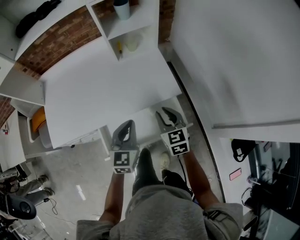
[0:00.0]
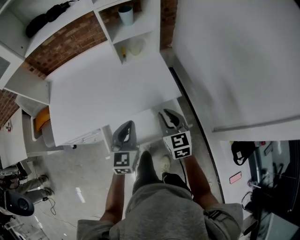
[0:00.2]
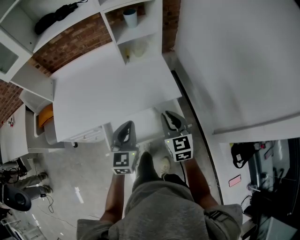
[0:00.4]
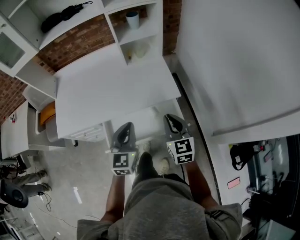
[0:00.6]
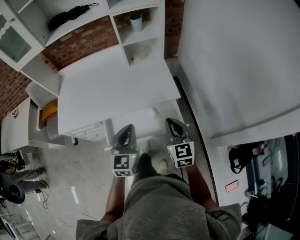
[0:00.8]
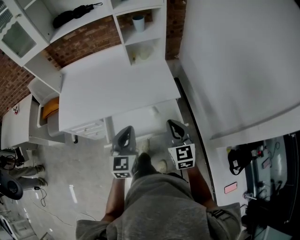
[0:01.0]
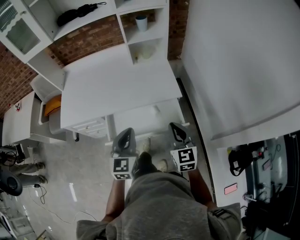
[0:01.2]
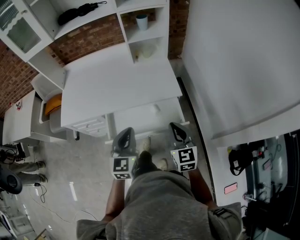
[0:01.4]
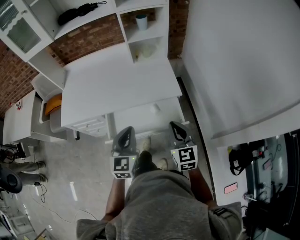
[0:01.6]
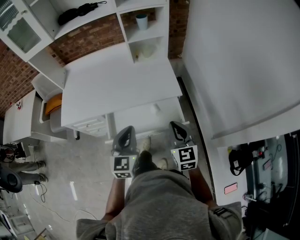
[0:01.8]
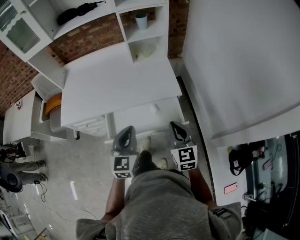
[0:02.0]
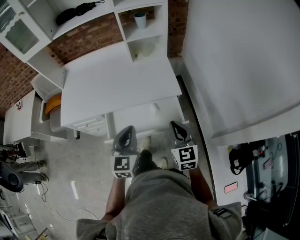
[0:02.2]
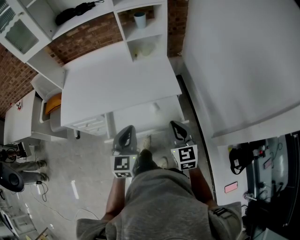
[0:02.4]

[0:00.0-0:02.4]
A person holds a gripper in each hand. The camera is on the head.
0:00.0 to 0:01.2: Both grippers move backward and upward, roughly 20 cm. The right gripper closes its fingers.
0:01.2 to 0:02.4: The grippers make only small movements.

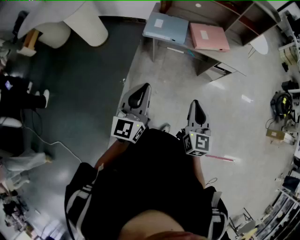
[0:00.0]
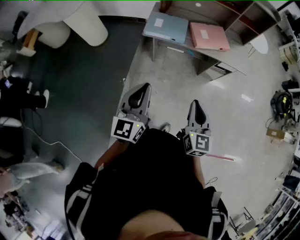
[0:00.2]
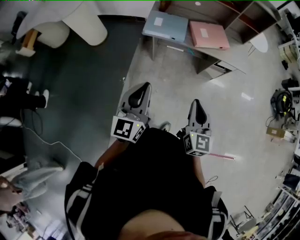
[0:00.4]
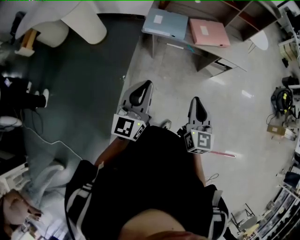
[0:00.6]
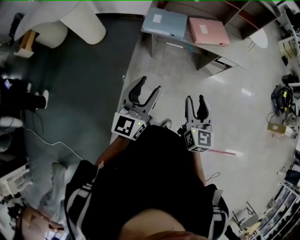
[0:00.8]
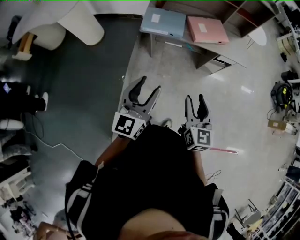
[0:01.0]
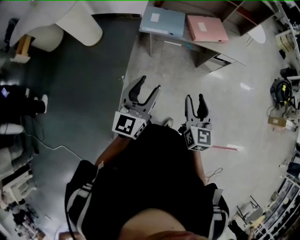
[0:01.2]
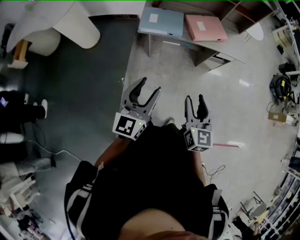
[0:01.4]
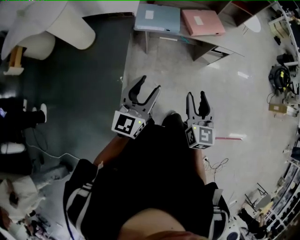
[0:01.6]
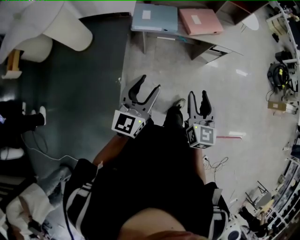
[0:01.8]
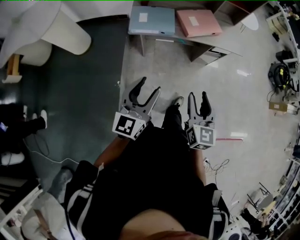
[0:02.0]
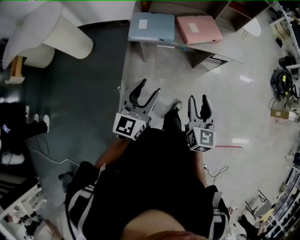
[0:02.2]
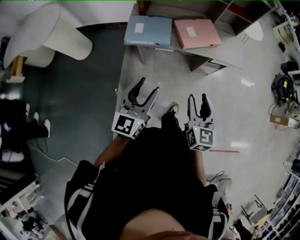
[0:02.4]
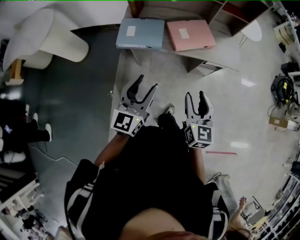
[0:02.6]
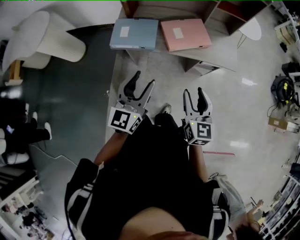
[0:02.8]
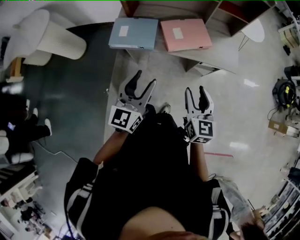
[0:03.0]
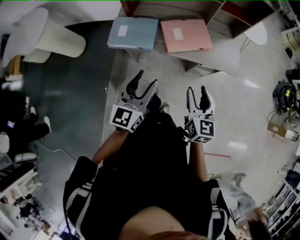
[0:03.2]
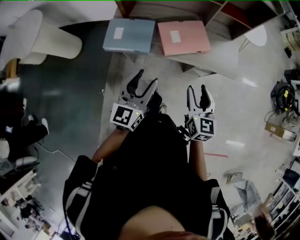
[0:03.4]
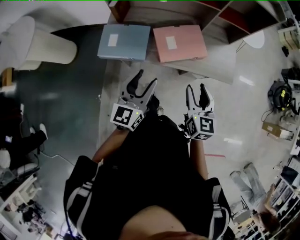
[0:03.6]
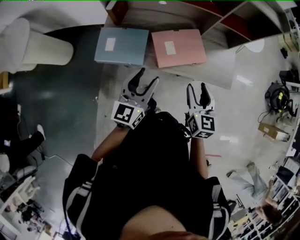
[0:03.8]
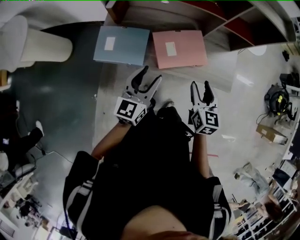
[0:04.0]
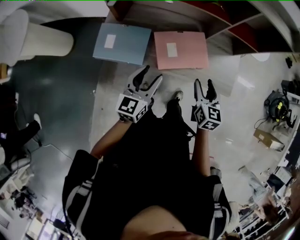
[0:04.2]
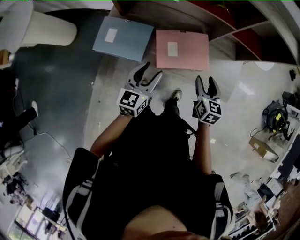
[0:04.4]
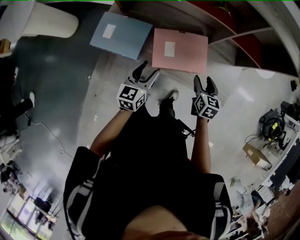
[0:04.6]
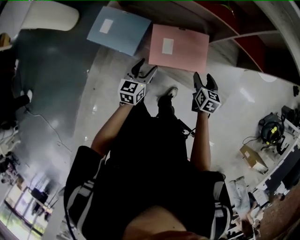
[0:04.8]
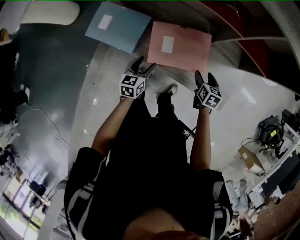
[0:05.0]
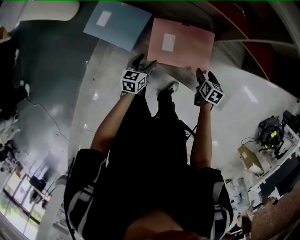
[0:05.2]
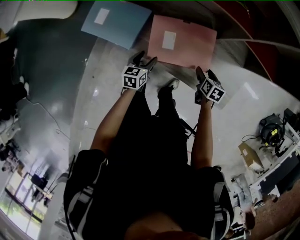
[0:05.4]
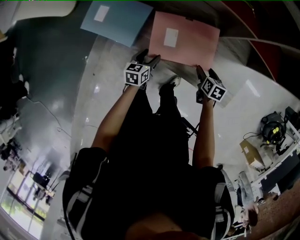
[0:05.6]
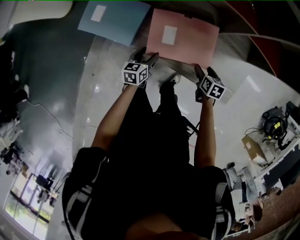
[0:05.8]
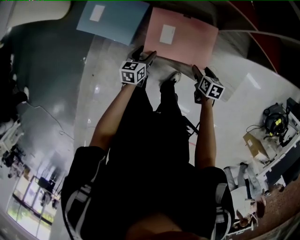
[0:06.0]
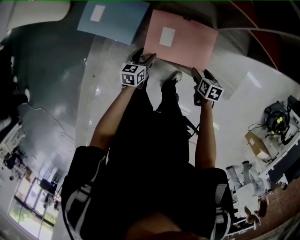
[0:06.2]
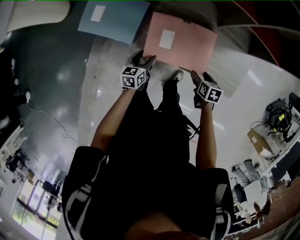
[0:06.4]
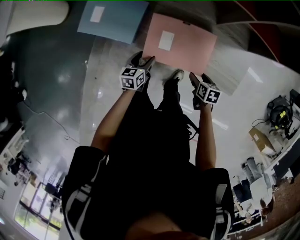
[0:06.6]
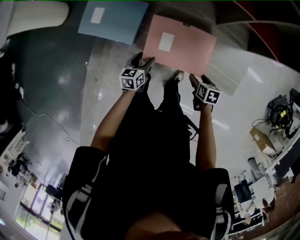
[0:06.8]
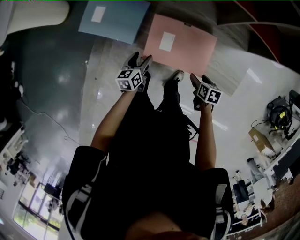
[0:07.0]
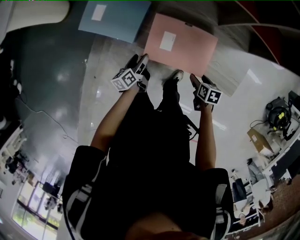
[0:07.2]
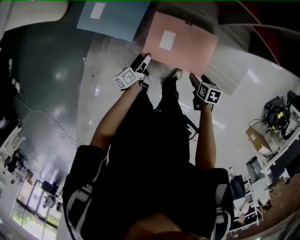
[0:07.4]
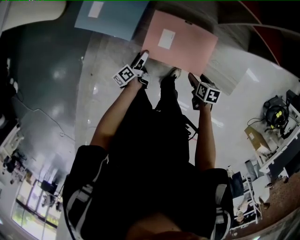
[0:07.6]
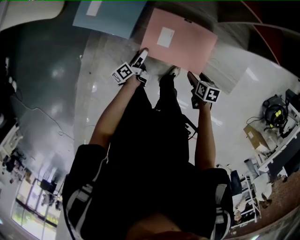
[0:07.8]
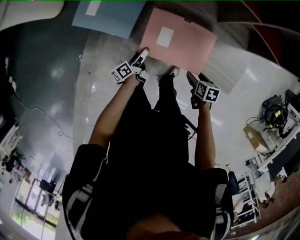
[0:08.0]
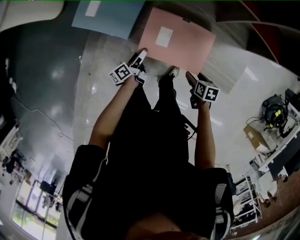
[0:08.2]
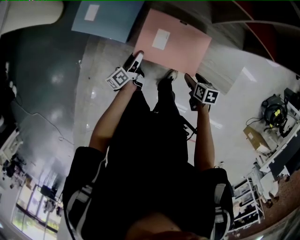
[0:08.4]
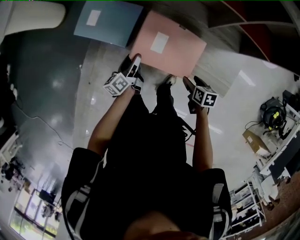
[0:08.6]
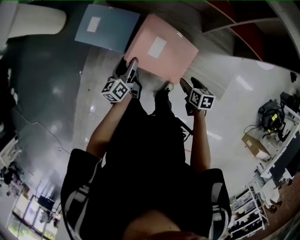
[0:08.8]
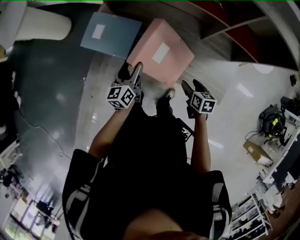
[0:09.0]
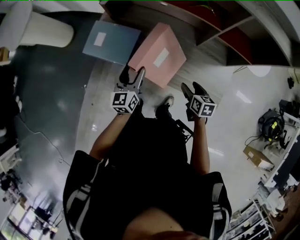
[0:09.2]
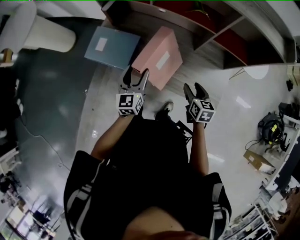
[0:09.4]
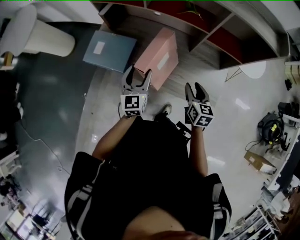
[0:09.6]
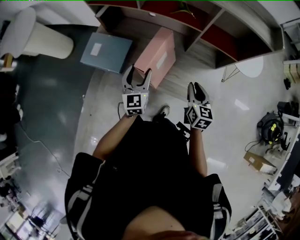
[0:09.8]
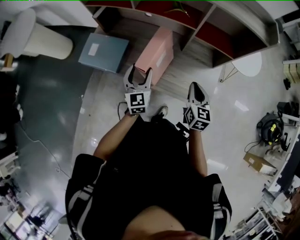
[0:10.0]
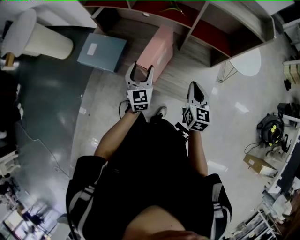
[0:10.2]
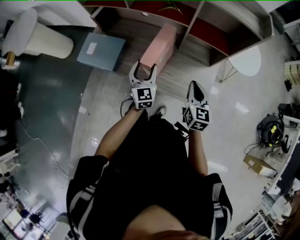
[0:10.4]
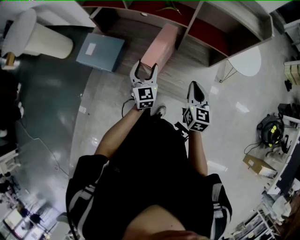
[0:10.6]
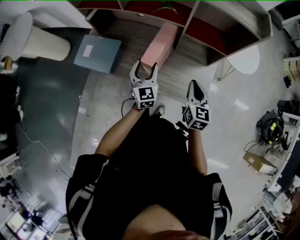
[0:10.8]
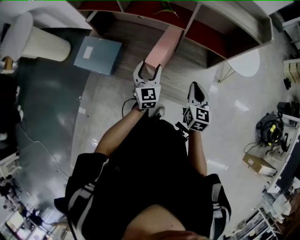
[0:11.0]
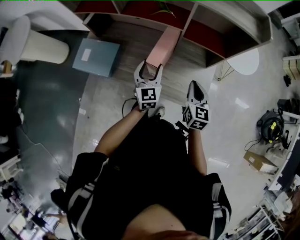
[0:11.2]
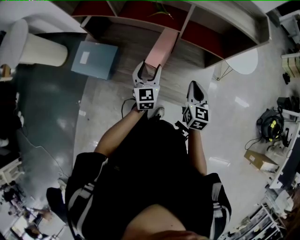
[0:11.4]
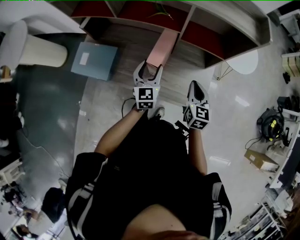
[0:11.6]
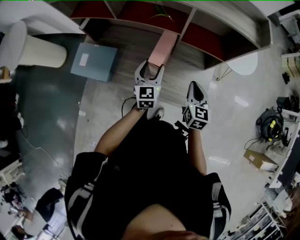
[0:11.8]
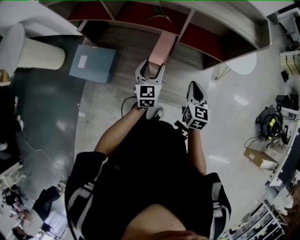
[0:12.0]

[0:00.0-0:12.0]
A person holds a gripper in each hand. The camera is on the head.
0:00.0 to 0:01.6: The right gripper heads to the left, covering about 5 cm, and opens up. The left gripper changes place by about 5 cm, and opens up.
0:01.6 to 0:03.0: The two grippers go approximately 30 cm forward and to the right.
0:03.0 to 0:04.4: The right gripper heads forward, covering about 30 cm, while the left gripper goes some 30 cm forward and downward.
0:04.4 to 0:06.0: Both grippers move downward, approximately 25 cm. The right gripper swivels roughly 30 degrees. Meanwhile the left gripper changes its angle by some 30 degrees.
0:06.0 to 0:07.6: The right gripper shifts approximately 10 cm backward. Meanwhile the left gripper changes place by some 10 cm, and rolls counterclockwise, seen from behind, by some 50 degrees.
0:07.6 to 0:09.0: The right gripper is displaced upward by some 10 cm. The left gripper heads upward, covering roughly 20 cm, and rotates around the line of its fingers by approximately 50 degrees, clockwise from behind.
0:09.0 to 0:10.4: The left gripper goes some 20 cm to the right, and swivels roughly 40 degrees. The right gripper shifts roughly 20 cm upward and to the right, changes its angle by some 40 degrees, and closes its fingers.
0:10.4 to 0:12.0: The left gripper travels forward and to the right by approximately 10 cm; the right gripper shifts about 5 cm forward.

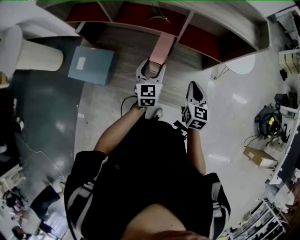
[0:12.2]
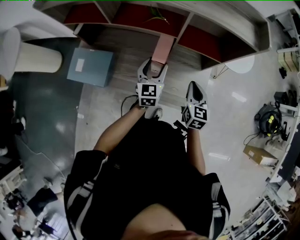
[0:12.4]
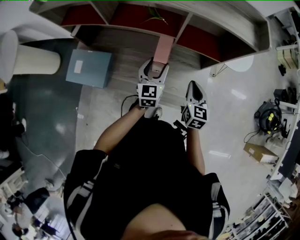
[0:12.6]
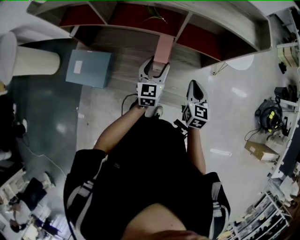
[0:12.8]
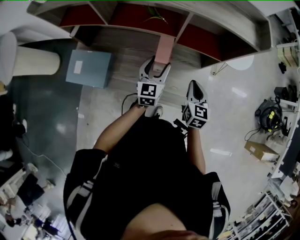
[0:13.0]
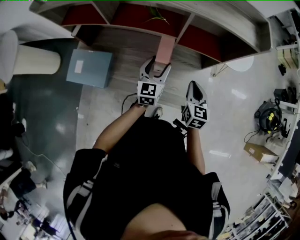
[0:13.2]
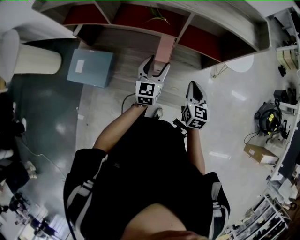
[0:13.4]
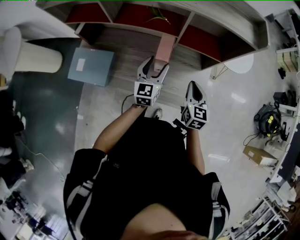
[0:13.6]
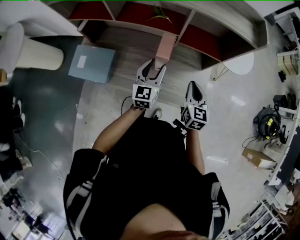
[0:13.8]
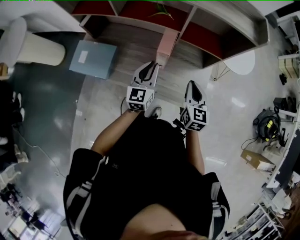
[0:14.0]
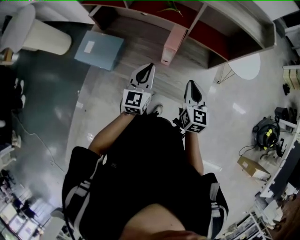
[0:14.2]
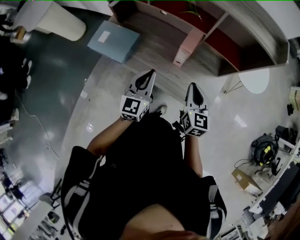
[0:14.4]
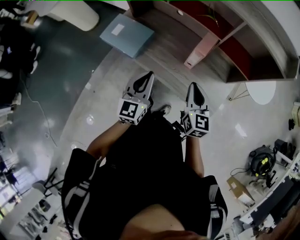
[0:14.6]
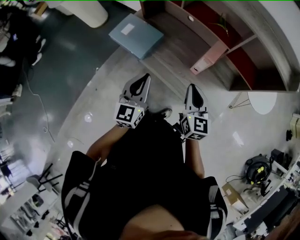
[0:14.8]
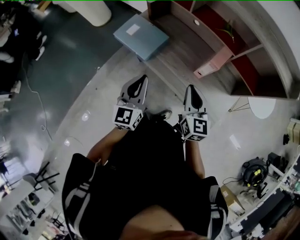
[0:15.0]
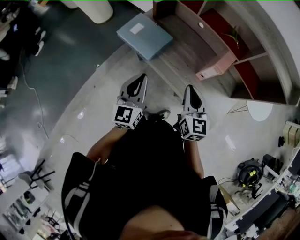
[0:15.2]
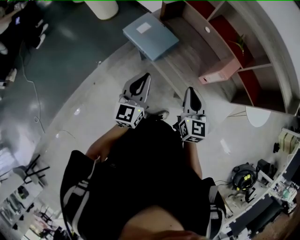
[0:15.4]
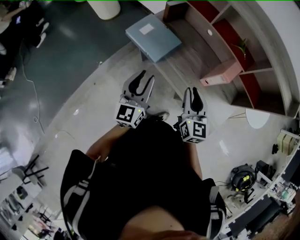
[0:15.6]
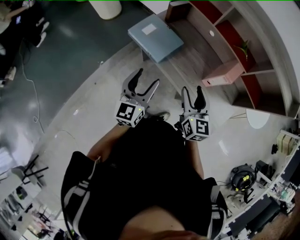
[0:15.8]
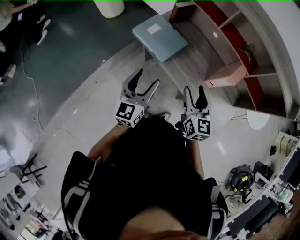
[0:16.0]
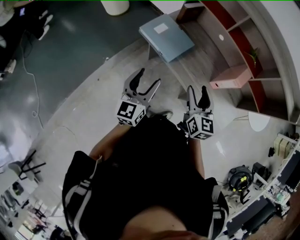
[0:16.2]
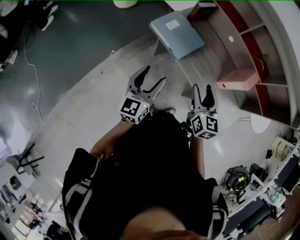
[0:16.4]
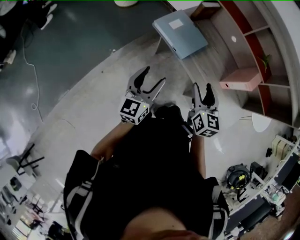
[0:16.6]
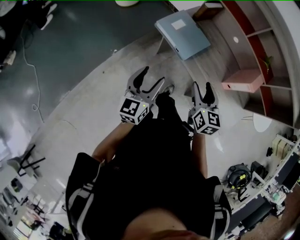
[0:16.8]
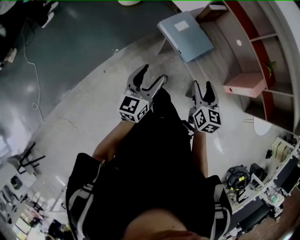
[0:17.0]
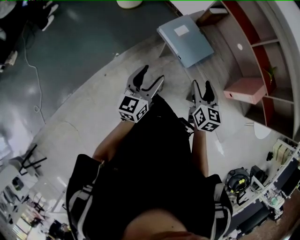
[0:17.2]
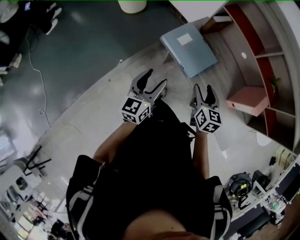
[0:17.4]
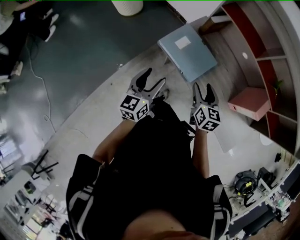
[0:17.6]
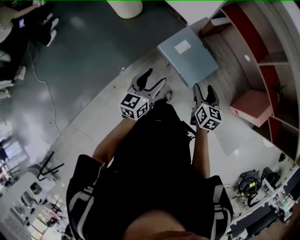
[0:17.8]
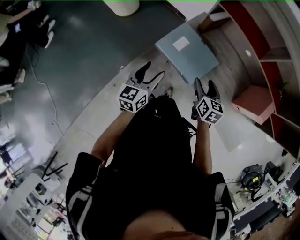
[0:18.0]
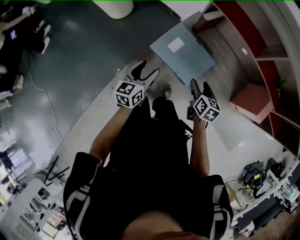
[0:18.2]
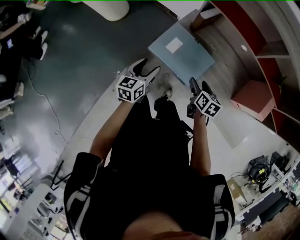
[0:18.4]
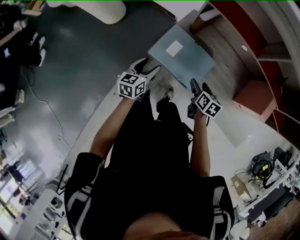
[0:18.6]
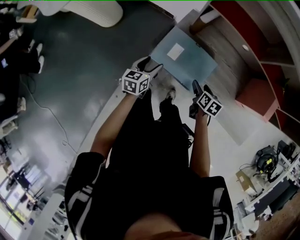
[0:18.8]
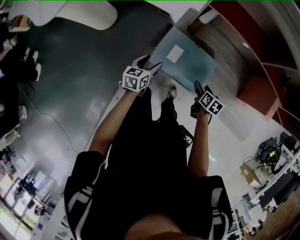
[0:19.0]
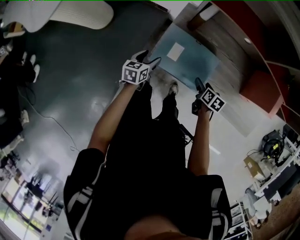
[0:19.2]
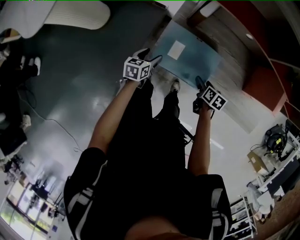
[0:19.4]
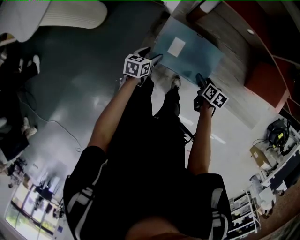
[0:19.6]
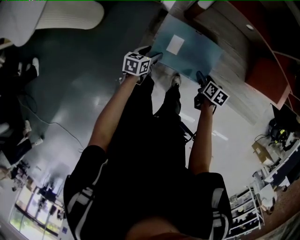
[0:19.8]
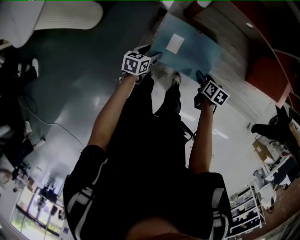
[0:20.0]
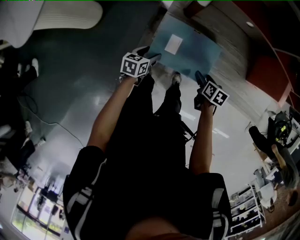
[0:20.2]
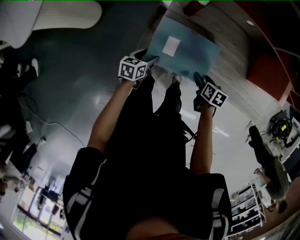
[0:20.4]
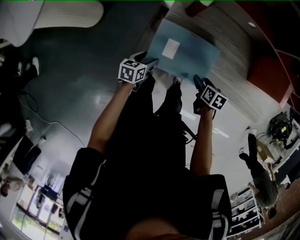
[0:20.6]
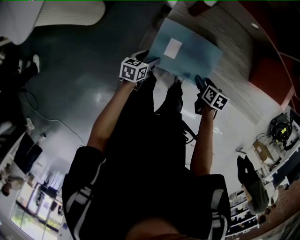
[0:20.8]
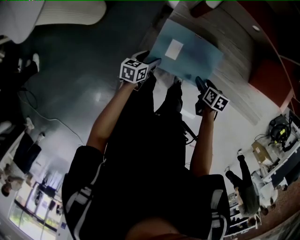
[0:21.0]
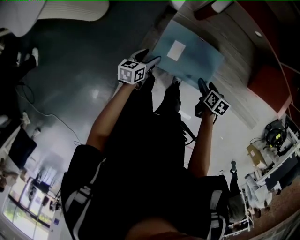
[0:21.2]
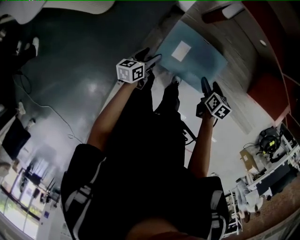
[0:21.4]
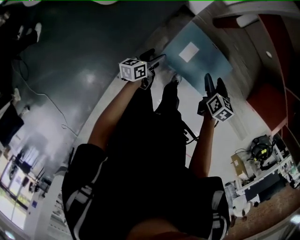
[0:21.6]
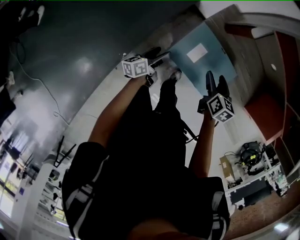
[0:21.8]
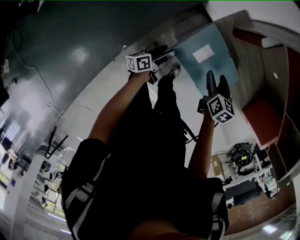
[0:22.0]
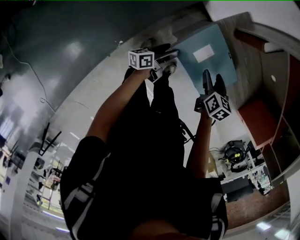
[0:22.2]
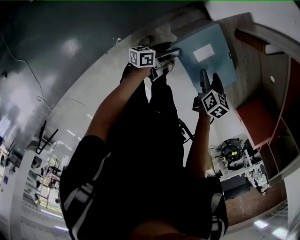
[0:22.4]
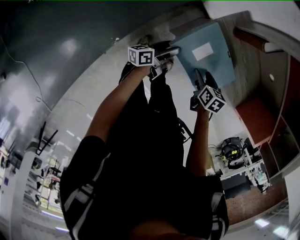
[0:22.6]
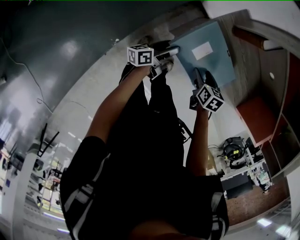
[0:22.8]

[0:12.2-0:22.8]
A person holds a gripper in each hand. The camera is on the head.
0:12.2 to 0:13.8: The grippers move only a little.
0:13.8 to 0:15.2: The left gripper ends up about 35 cm from where it was, rotates some 30 degrees, and closes its fingers. The right gripper changes place by approximately 25 cm, and changes its angle by some 30 degrees.
0:15.2 to 0:16.8: The grippers both shift to the left by approximately 20 cm. The left gripper opens its fingers. The right gripper opens its fingers.
0:16.8 to 0:18.2: Both grippers travel together forward and downward, about 25 cm. The right gripper turns by about 30 degrees. Meanwhile the left gripper changes its angle by some 20 degrees.
0:18.2 to 0:19.8: Both grippers move downward, roughly 20 cm. The left gripper turns by roughly 40 degrees. Meanwhile the right gripper changes its angle by about 30 degrees.
0:19.8 to 0:21.2: The grippers make only small movements.
0:21.2 to 0:22.8: The left gripper rotates approximately 50 degrees; the right gripper is displaced to the left by some 10 cm, and turns by approximately 30 degrees.
